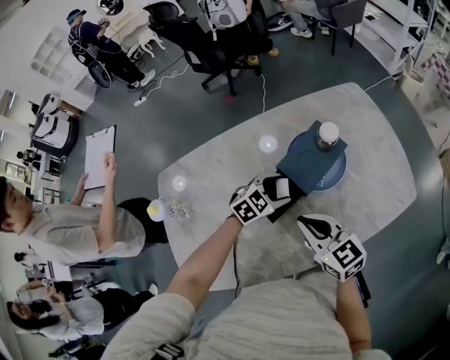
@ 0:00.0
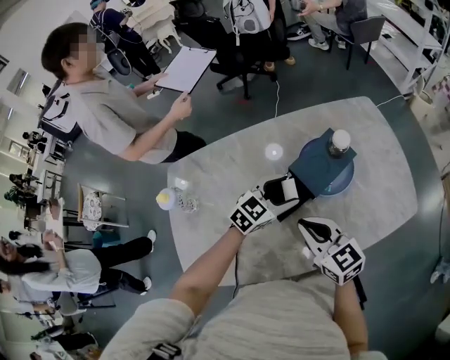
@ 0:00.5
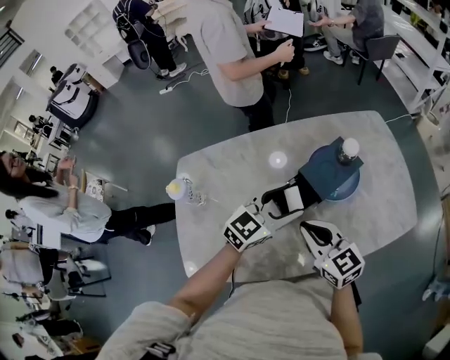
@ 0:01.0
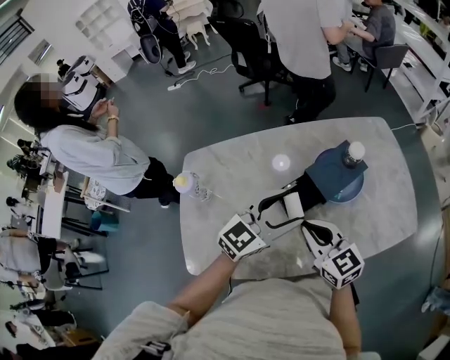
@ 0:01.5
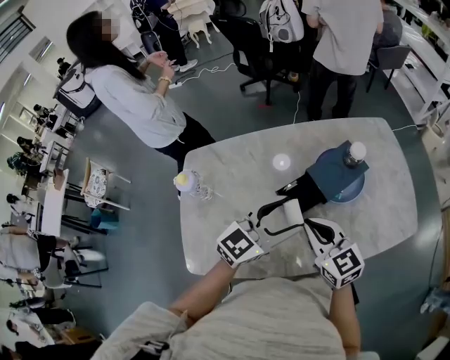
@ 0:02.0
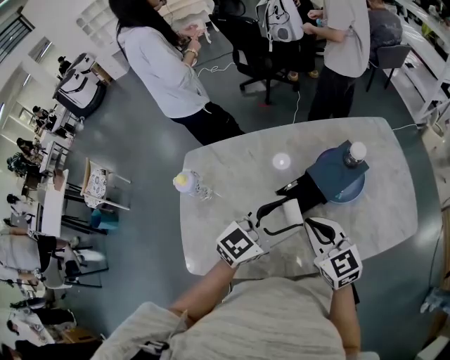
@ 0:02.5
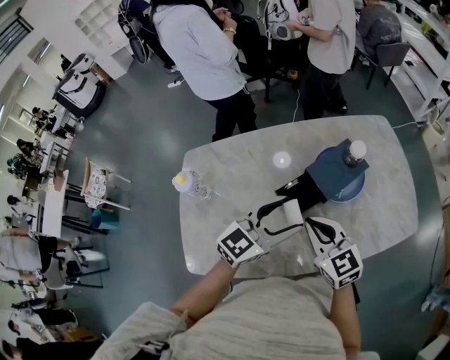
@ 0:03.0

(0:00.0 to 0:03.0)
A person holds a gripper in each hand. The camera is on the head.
0:00.0 - 0:01.5: The left gripper moves upward and backward, roughly 25 cm, and points its fingers about 30 degrees further upward, while the right gripper goes some 5 cm to the left.
0:01.5 - 0:03.0: The grippers make only small movements.

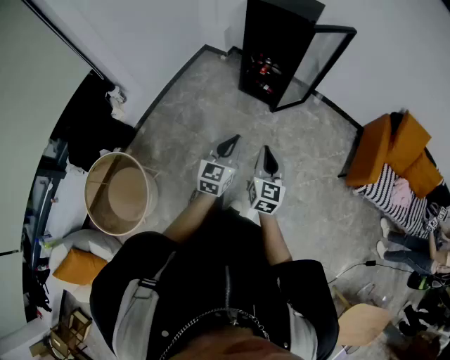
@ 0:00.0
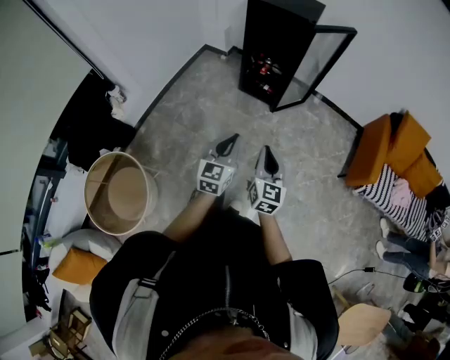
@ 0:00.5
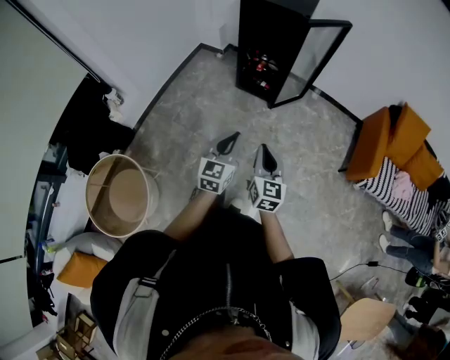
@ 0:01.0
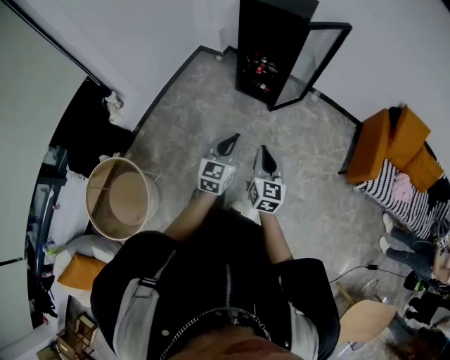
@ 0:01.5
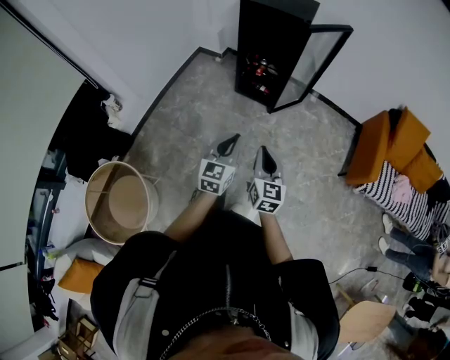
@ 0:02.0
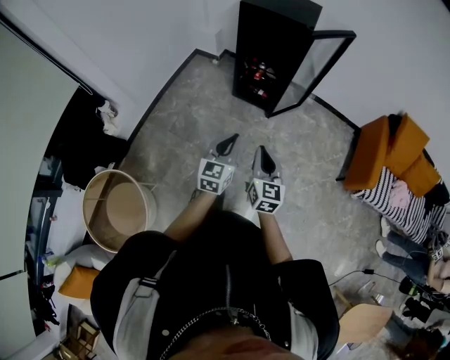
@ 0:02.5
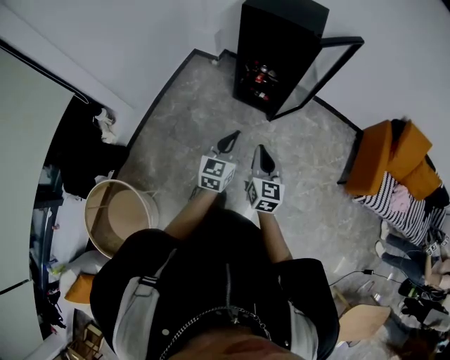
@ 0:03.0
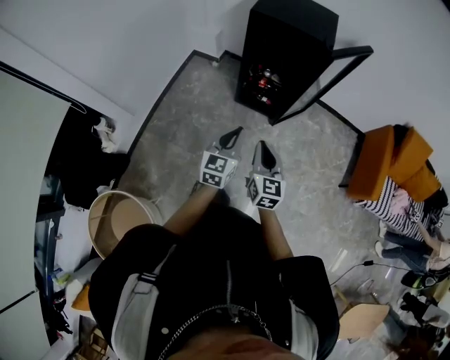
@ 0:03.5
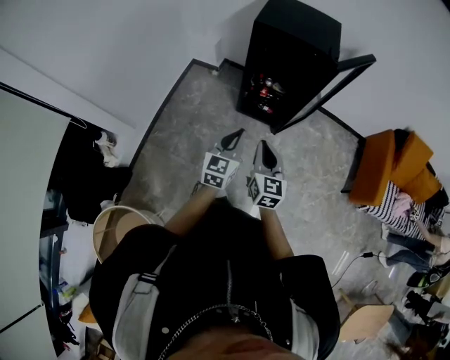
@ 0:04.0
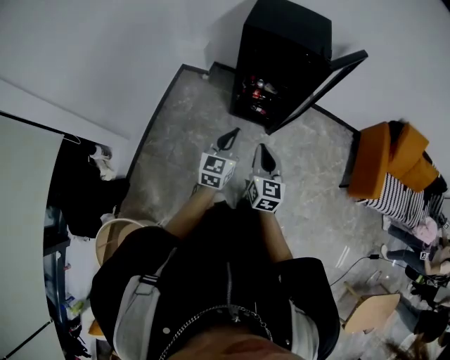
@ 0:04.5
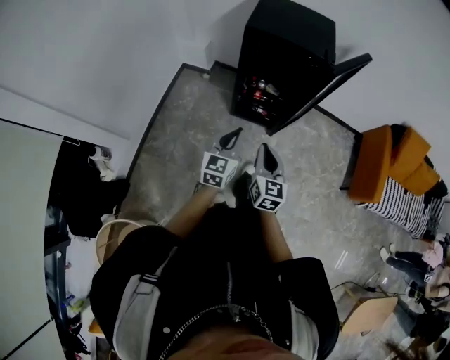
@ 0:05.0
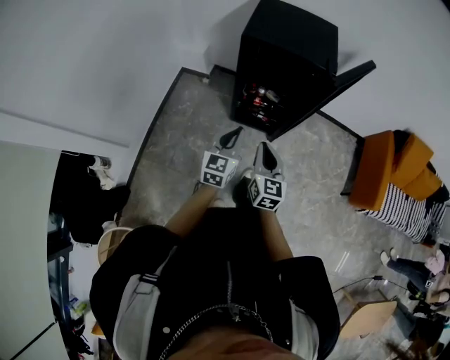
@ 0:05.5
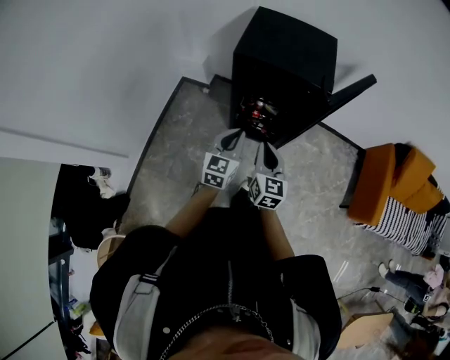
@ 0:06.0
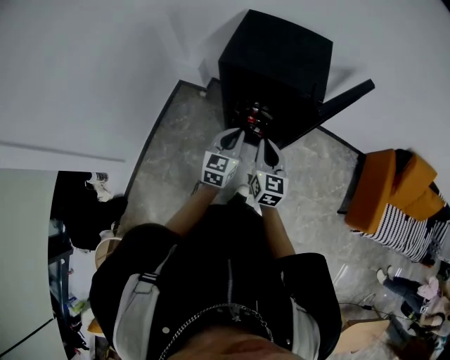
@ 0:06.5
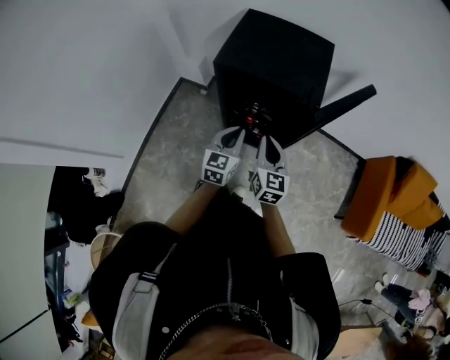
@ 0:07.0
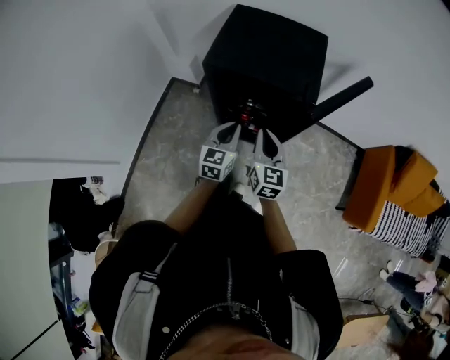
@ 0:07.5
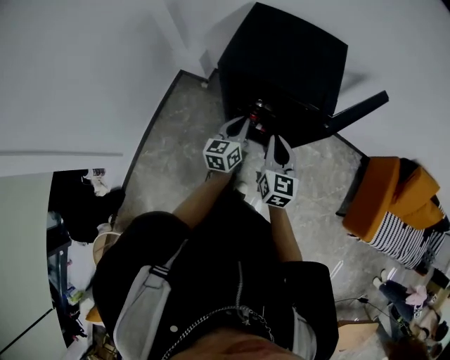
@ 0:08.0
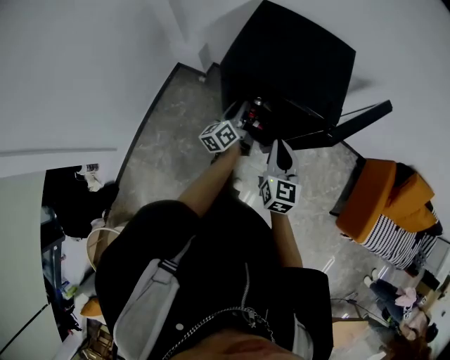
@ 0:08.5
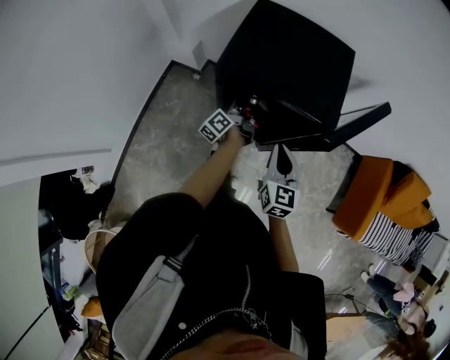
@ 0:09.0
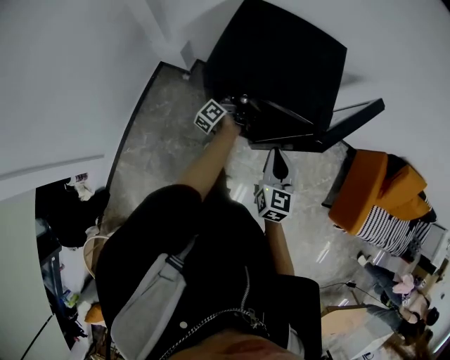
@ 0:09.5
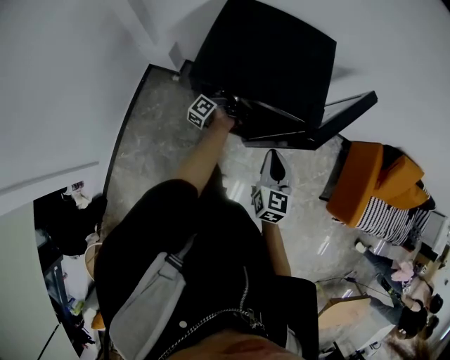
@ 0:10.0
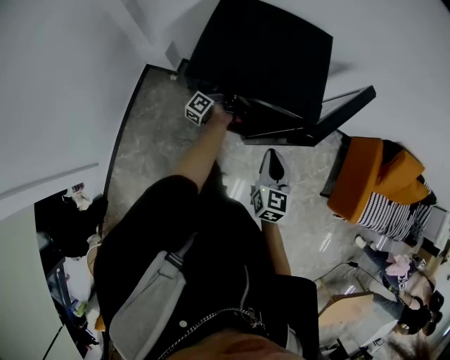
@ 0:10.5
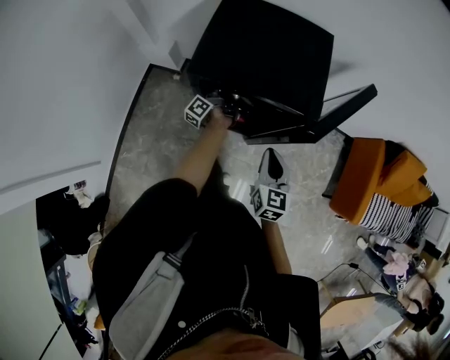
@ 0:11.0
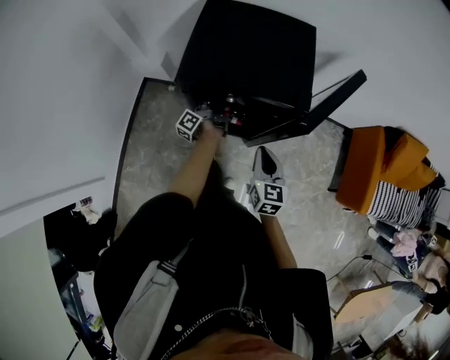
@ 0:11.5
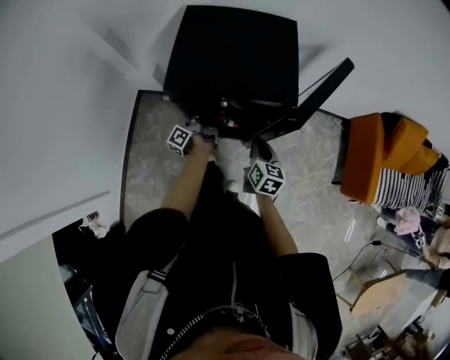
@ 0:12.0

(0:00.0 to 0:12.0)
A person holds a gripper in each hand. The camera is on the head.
0:00.0 - 0:02.0: There are only small adjustments of the grippers.
0:02.0 - 0:04.0: The grippers both shift forward and to the left by about 30 cm.
0:04.0 - 0:06.0: Both grippers travel together forward, roughly 20 cm.
0:06.0 - 0:08.0: The right gripper travels forward and to the right by roughly 15 cm. Meanwhile the left gripper heads forward, covering some 15 cm, and rotates some 20 degrees.
0:08.0 - 0:10.0: The left gripper goes roughly 25 cm forward and downward, rotates around the line of its fingers by approximately 60 degrees, counterclockwise from behind, and opens, while the right gripper moves to the right, approximately 5 cm.
0:10.0 - 0:12.0: The right gripper is displaced downward by roughly 5 cm, and rotates some 20 degrees. Meanwhile the left gripper heads backward, covering some 5 cm, and closes its fingers.

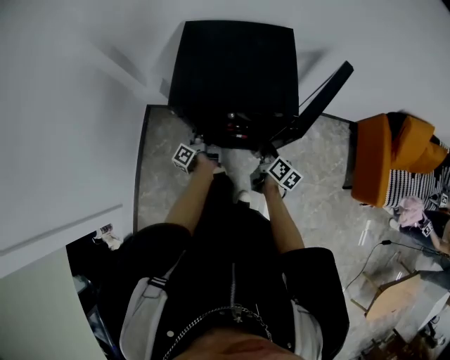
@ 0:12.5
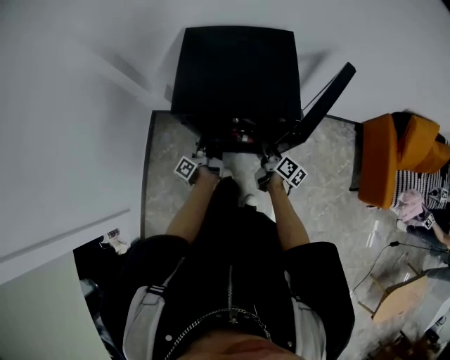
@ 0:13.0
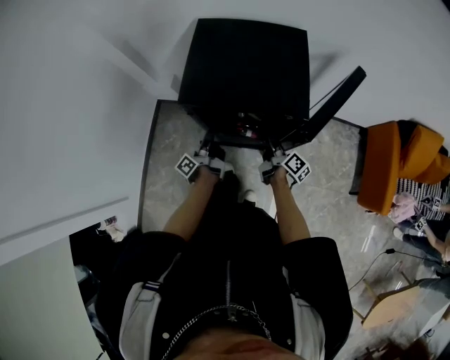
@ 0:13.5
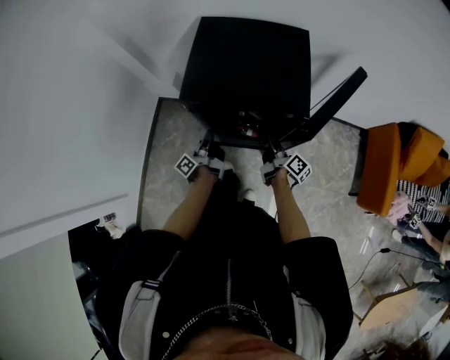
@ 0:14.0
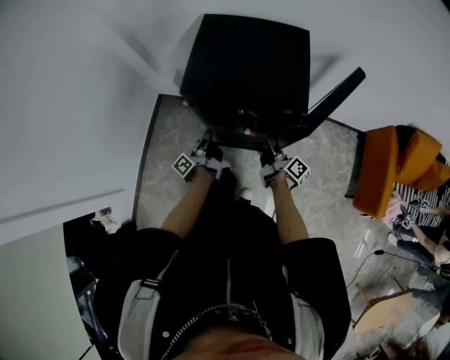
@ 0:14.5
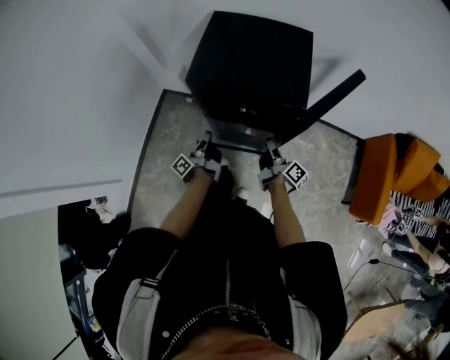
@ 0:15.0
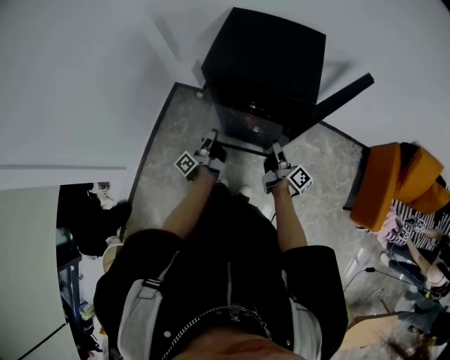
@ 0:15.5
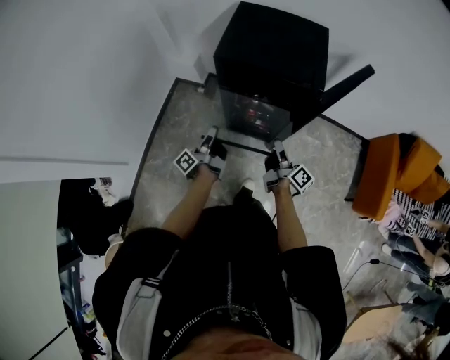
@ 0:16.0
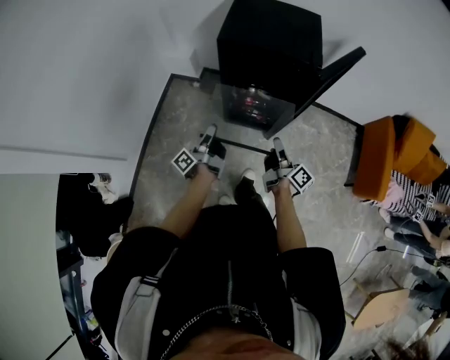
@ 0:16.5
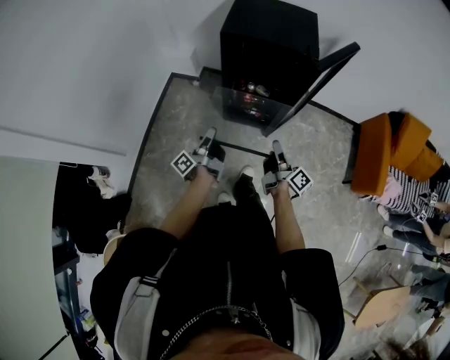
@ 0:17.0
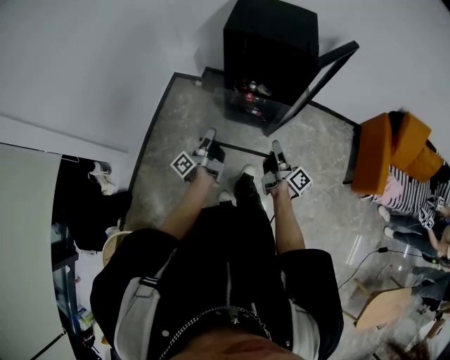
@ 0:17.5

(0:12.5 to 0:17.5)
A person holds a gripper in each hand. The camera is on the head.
0:12.5 - 0:15.0: The right gripper rotates approximately 30 degrees, and closes its fingers; the left gripper travels backward by approximately 10 cm.
0:15.0 - 0:17.5: Both grippers move backward, about 25 cm.

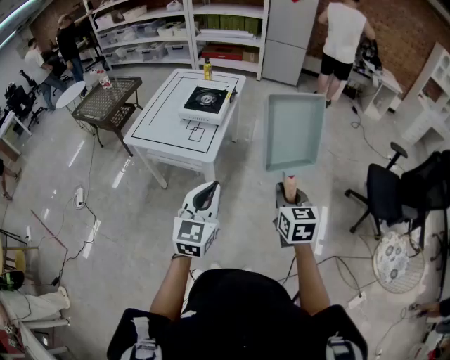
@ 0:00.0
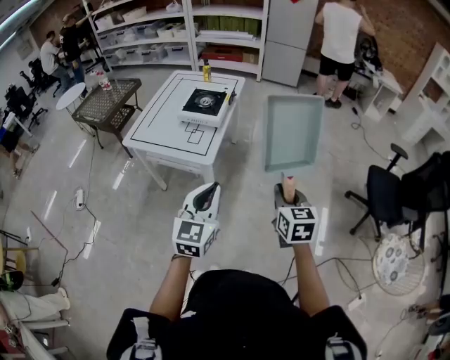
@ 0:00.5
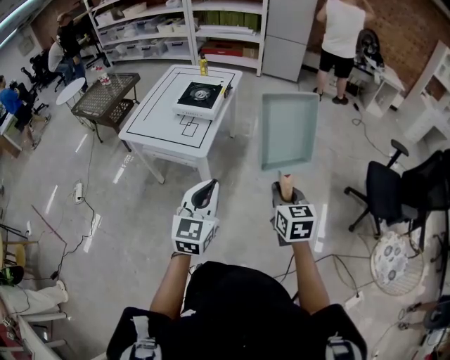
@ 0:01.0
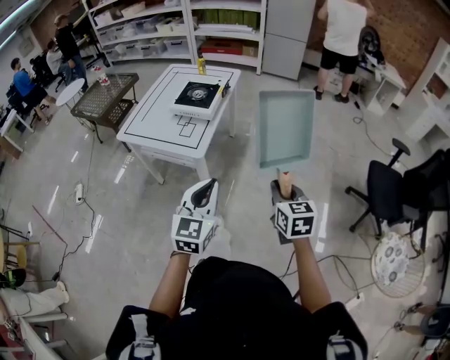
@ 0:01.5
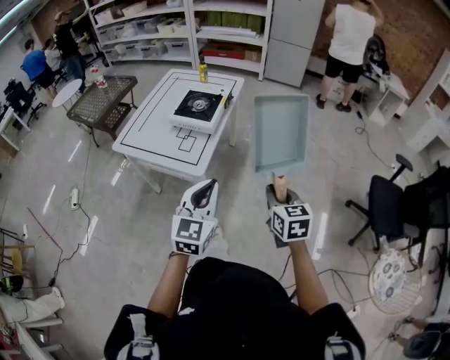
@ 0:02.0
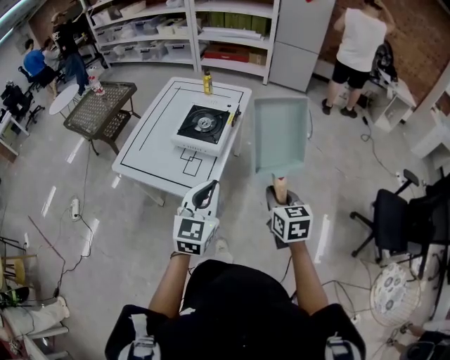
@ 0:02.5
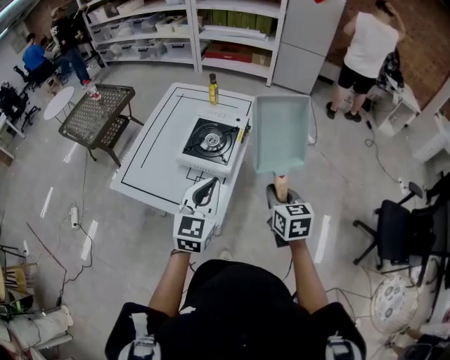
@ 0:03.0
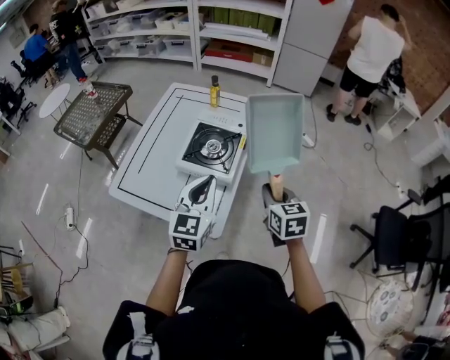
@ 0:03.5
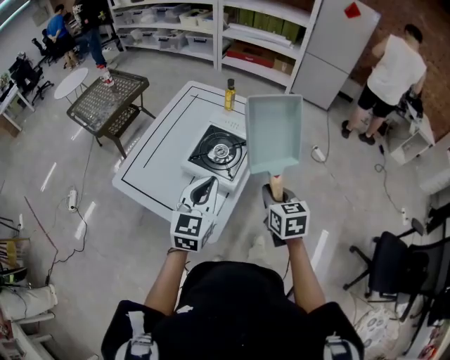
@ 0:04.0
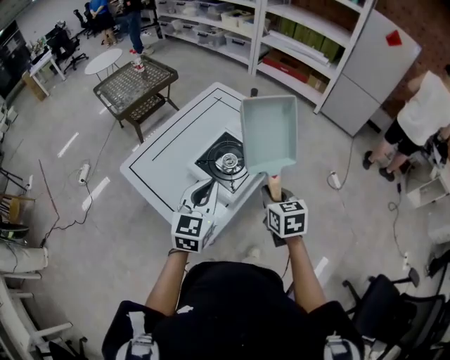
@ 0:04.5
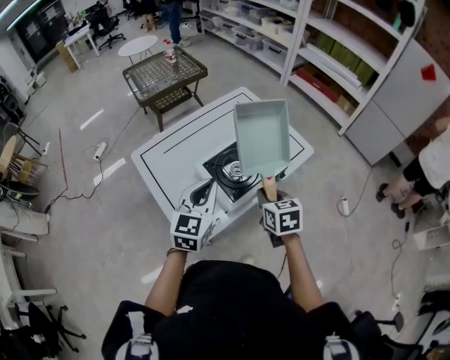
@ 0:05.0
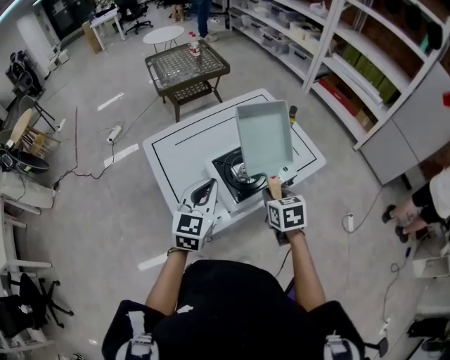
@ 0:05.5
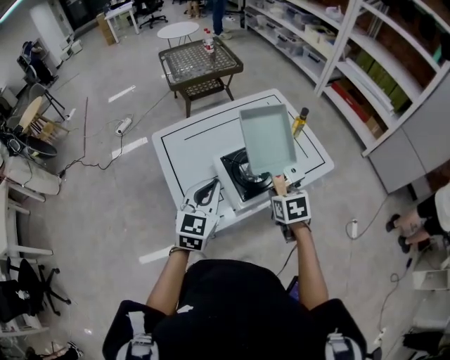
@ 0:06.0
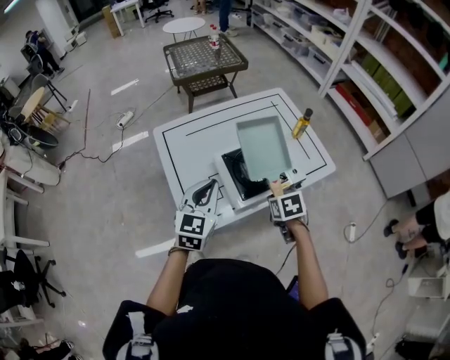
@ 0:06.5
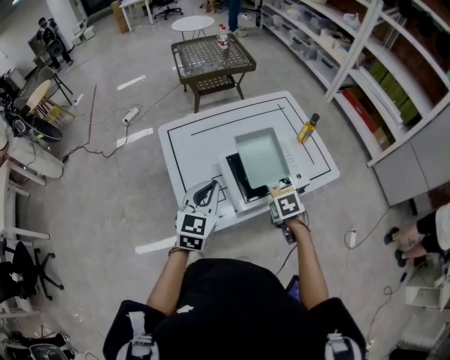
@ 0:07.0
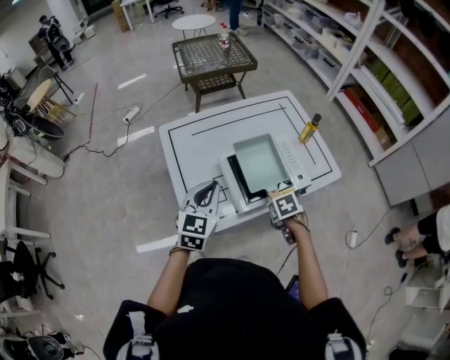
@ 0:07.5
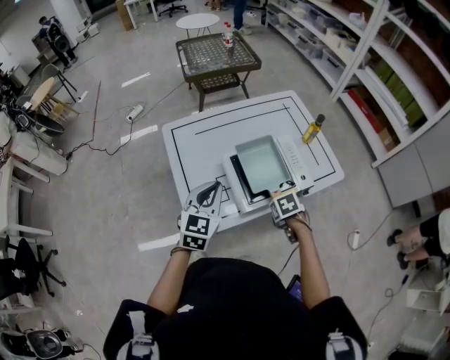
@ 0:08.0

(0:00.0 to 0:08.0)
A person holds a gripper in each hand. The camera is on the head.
0:00.0 - 0:02.0: Both grippers move forward, roughly 10 cm.
0:02.0 - 0:04.0: The two grippers go approximately 35 cm forward.
0:04.0 - 0:06.0: The left gripper swivels roughly 40 degrees. Meanwhile the right gripper moves about 15 cm, and changes its angle by some 40 degrees.
0:06.0 - 0:08.0: The right gripper moves downward, about 10 cm, and turns by about 30 degrees.
